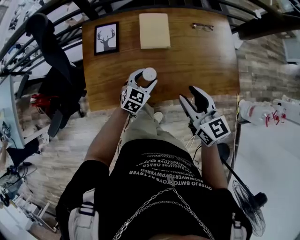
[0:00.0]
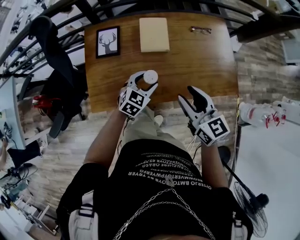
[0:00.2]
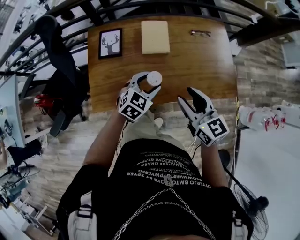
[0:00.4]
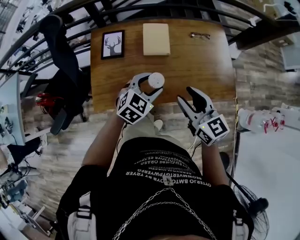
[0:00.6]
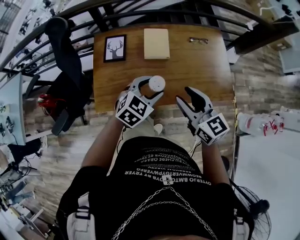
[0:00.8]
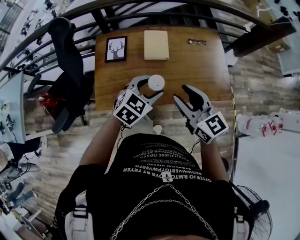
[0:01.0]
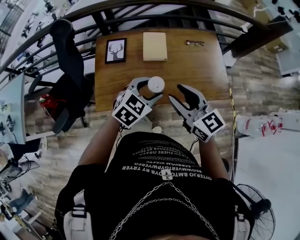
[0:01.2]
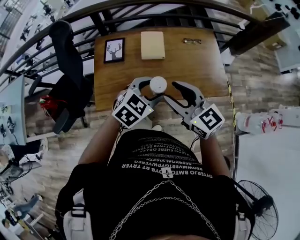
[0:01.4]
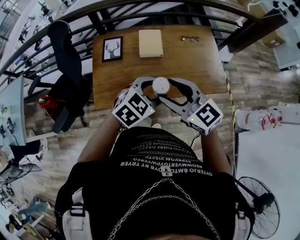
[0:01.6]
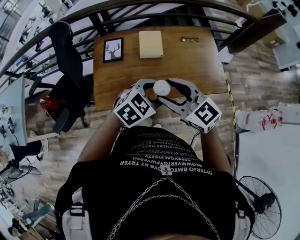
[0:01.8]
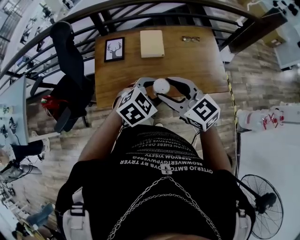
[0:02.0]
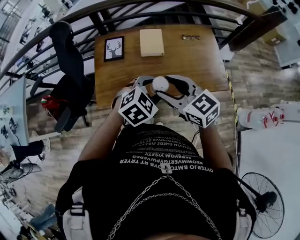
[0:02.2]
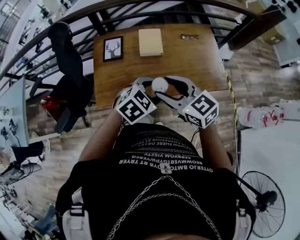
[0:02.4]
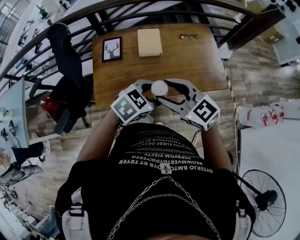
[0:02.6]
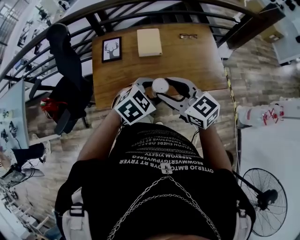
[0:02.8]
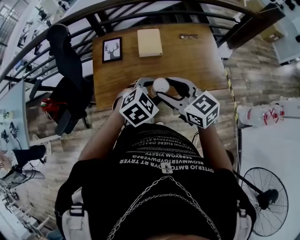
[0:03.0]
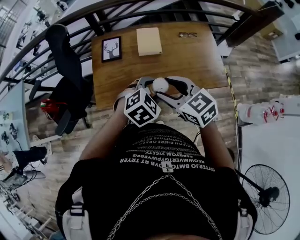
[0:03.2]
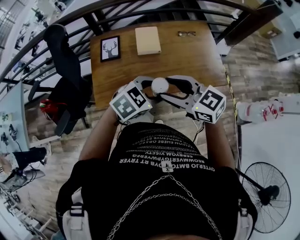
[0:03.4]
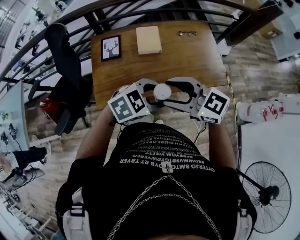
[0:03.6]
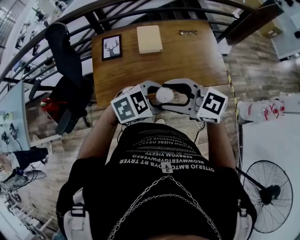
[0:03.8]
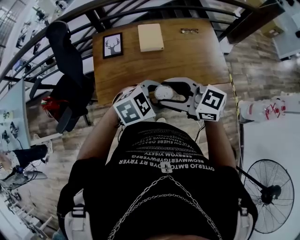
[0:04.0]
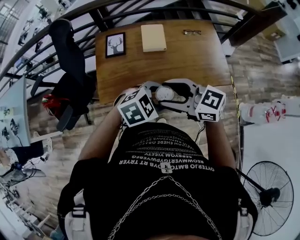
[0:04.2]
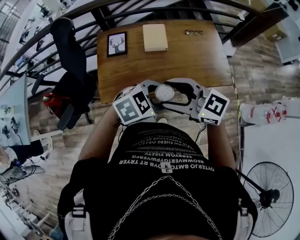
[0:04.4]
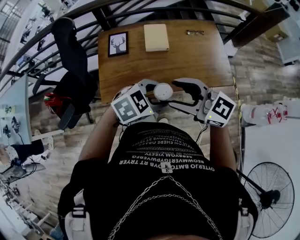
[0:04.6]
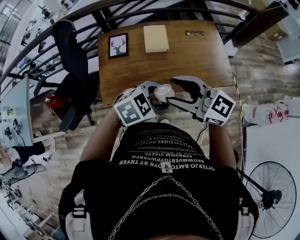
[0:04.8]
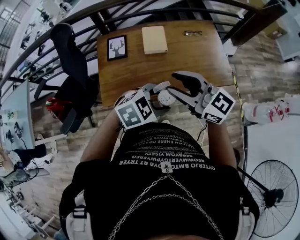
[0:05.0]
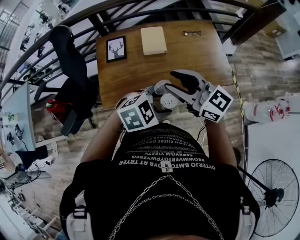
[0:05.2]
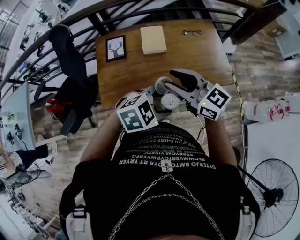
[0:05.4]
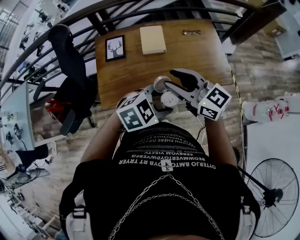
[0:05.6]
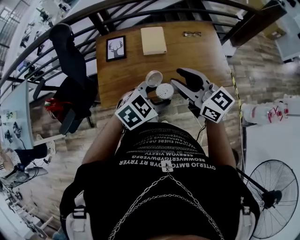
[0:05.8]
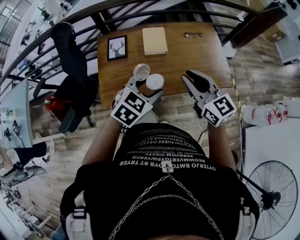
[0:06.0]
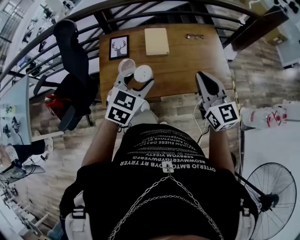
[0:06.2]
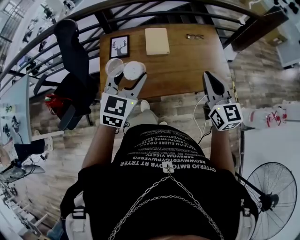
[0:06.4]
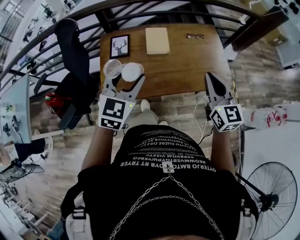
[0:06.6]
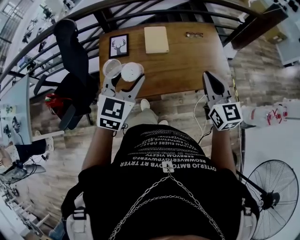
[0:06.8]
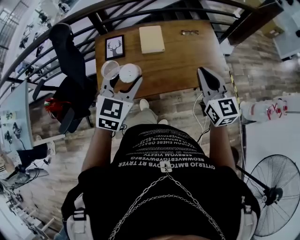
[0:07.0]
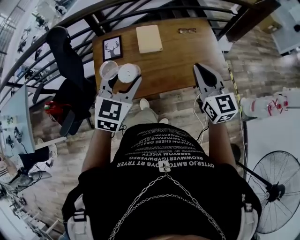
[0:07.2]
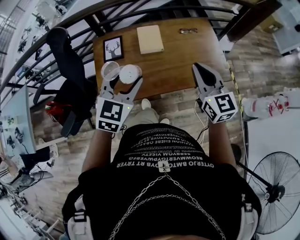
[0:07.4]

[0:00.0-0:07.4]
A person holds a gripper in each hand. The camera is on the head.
0:00.0 to 0:01.4: The right gripper is displaced upward and backward by approximately 15 cm, and turns by approximately 20 degrees. Meanwhile the left gripper heads upward and backward, covering some 25 cm.
0:01.4 to 0:03.0: The grippers stay close to where they were, moving slightly.
0:03.0 to 0:04.4: The left gripper moves about 5 cm. The right gripper shifts by some 5 cm, and turns by roughly 20 degrees.
0:04.4 to 0:06.0: The left gripper changes place by some 5 cm, and changes its angle by about 30 degrees; the right gripper changes place by approximately 10 cm, swivels some 30 degrees, and closes.
0:06.0 to 0:07.4: The right gripper travels to the right by roughly 5 cm. Meanwhile the left gripper moves upward and to the left, roughly 10 cm, and rotates roughly 20 degrees.

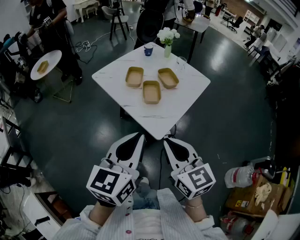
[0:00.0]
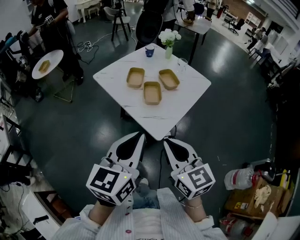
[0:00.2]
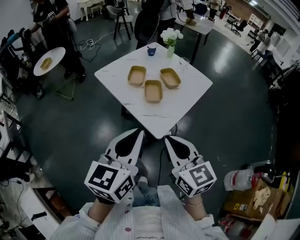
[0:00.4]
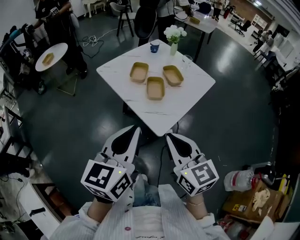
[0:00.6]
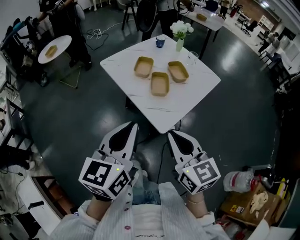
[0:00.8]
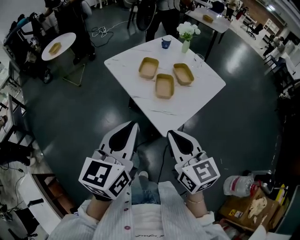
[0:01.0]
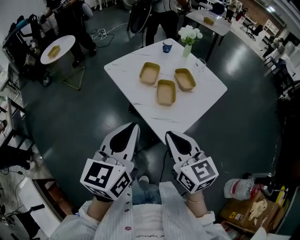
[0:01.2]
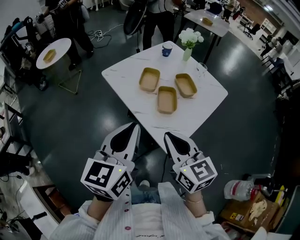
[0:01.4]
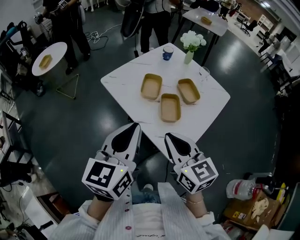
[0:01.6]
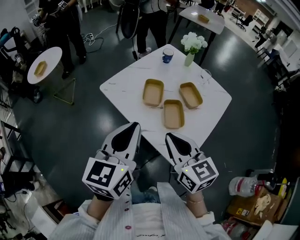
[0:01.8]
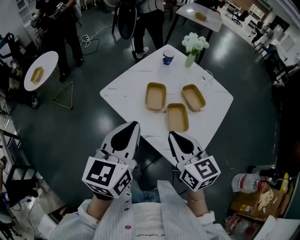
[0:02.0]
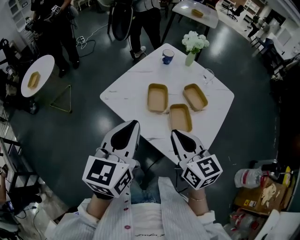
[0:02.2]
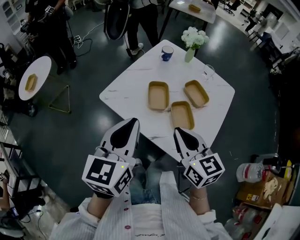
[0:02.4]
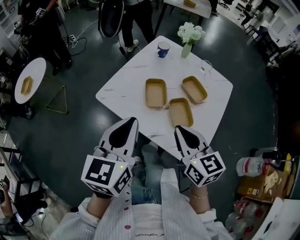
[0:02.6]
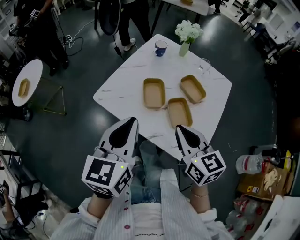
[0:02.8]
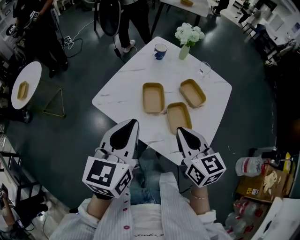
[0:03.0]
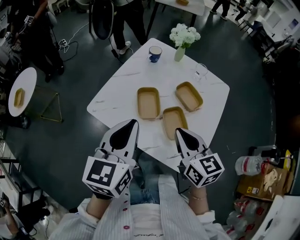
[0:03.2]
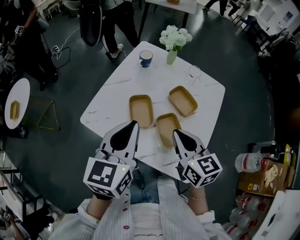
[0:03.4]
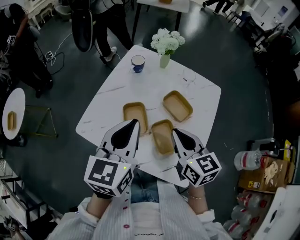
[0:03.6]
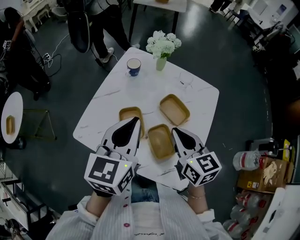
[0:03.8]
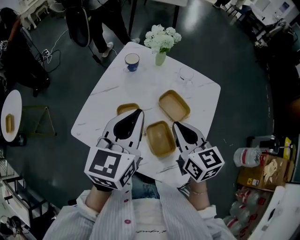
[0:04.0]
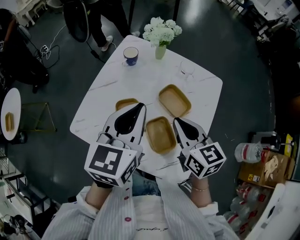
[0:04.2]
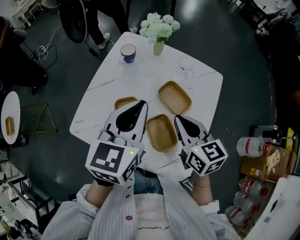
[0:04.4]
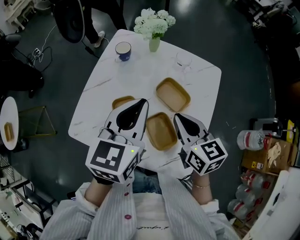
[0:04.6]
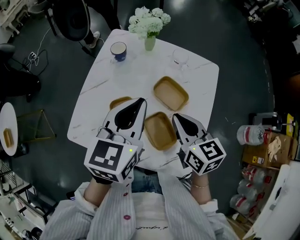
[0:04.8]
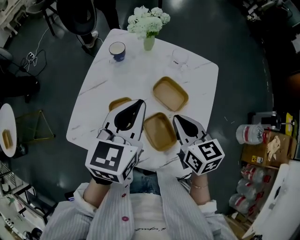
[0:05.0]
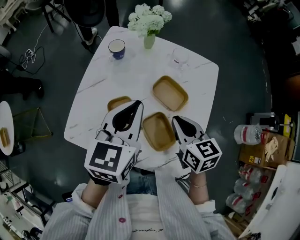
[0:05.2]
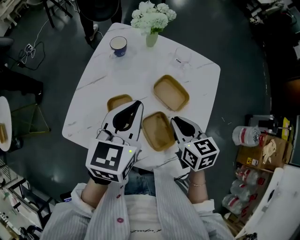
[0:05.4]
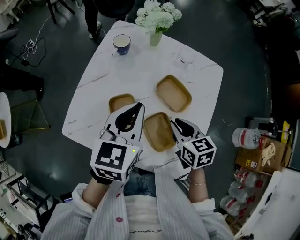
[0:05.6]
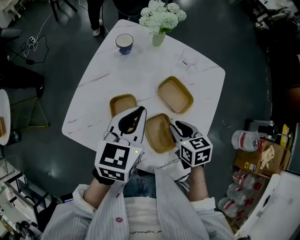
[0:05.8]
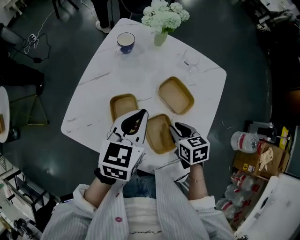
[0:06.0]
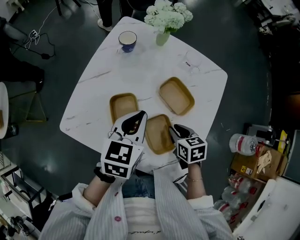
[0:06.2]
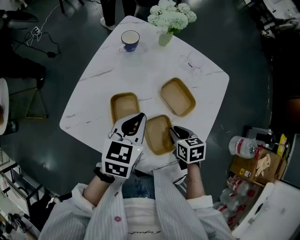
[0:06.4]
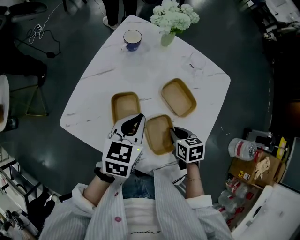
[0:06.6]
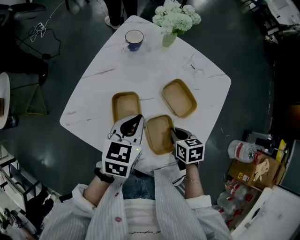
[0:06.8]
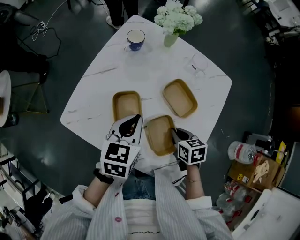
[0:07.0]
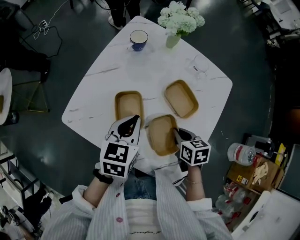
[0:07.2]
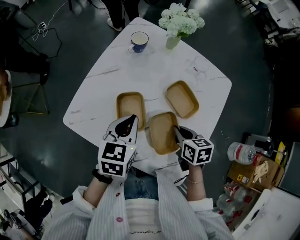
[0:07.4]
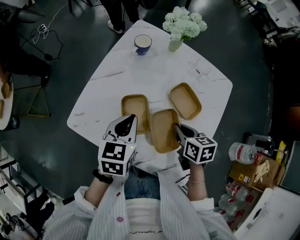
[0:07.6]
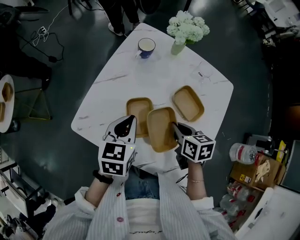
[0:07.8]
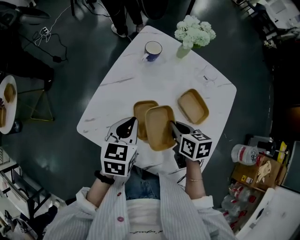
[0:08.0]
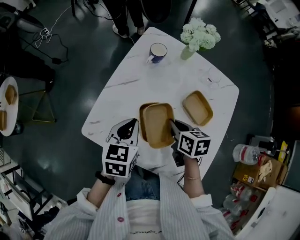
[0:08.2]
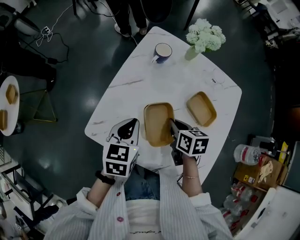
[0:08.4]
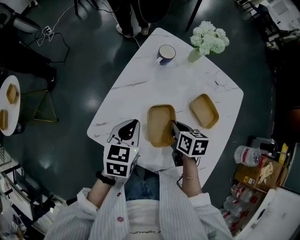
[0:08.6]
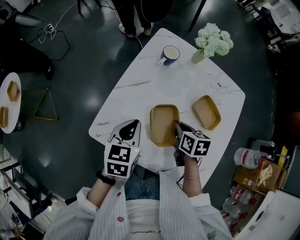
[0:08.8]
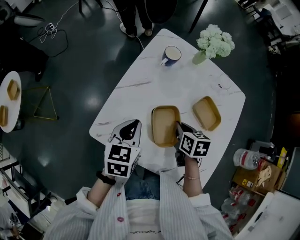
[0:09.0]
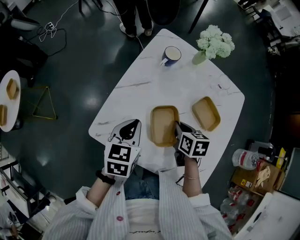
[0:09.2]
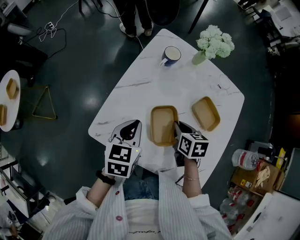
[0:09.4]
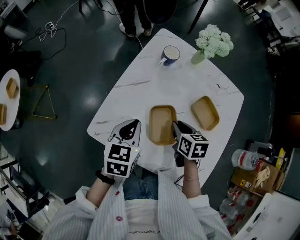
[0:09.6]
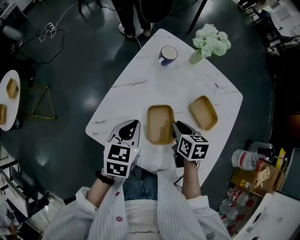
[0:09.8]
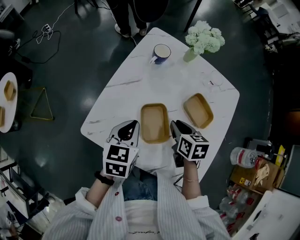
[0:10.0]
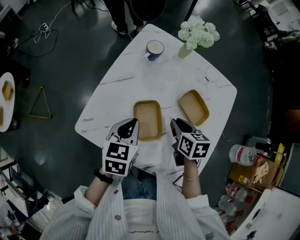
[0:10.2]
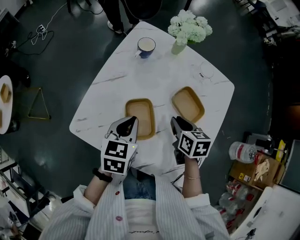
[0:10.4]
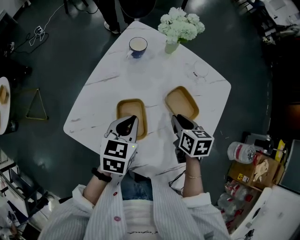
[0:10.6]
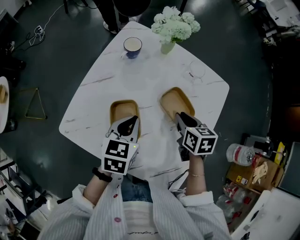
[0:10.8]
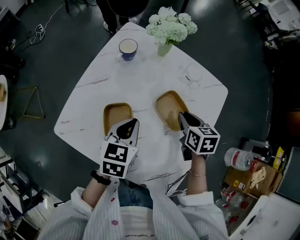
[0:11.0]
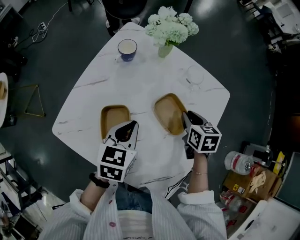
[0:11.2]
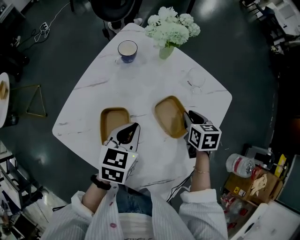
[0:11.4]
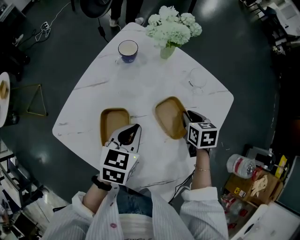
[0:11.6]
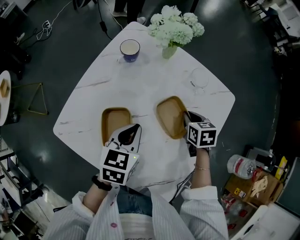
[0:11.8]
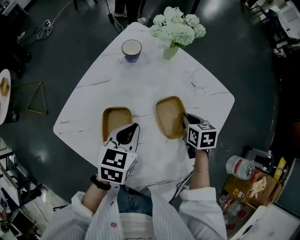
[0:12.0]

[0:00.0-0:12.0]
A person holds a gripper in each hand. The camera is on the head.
0:00.0 to 0:01.6: The left gripper heads forward and to the left, covering roughly 20 cm. The right gripper goes about 15 cm forward.
0:01.6 to 0:03.0: The right gripper travels forward by roughly 15 cm, and rotates approximately 20 degrees, while the left gripper travels forward and to the left by about 15 cm.
0:03.0 to 0:04.4: The grippers both shift forward and to the right by roughly 20 cm.
0:04.4 to 0:06.0: The left gripper travels downward by about 10 cm. The right gripper shifts roughly 15 cm downward, rotates approximately 30 degrees, and opens its fingers.
0:06.0 to 0:07.6: The left gripper travels to the left by some 5 cm.
0:07.6 to 0:09.0: The left gripper shifts about 10 cm to the left; the right gripper is displaced to the left and forward by roughly 10 cm.
0:09.0 to 0:10.4: The two grippers go some 10 cm to the right.
0:10.4 to 0:12.0: The right gripper travels to the right, forward and downward by approximately 15 cm; the left gripper goes roughly 10 cm to the right.

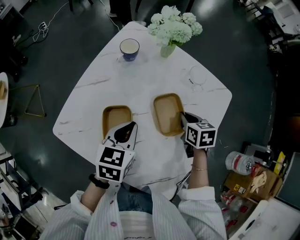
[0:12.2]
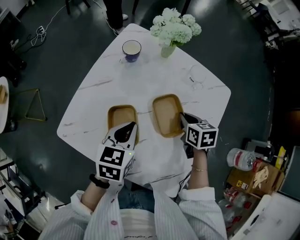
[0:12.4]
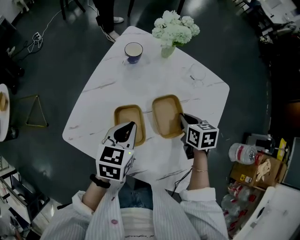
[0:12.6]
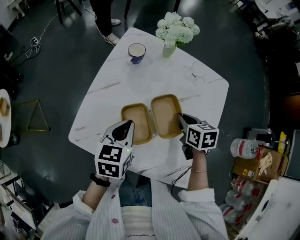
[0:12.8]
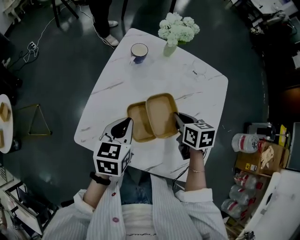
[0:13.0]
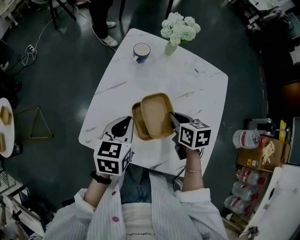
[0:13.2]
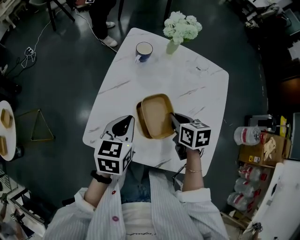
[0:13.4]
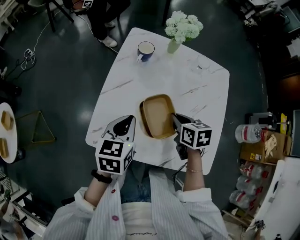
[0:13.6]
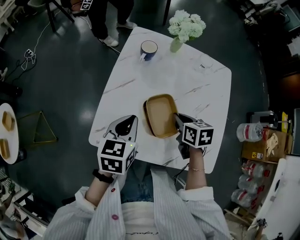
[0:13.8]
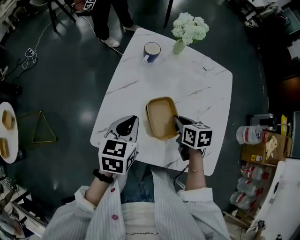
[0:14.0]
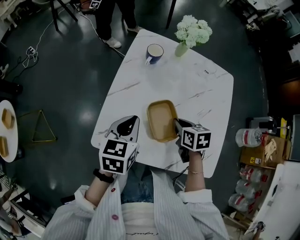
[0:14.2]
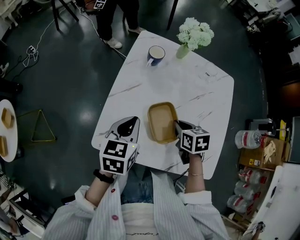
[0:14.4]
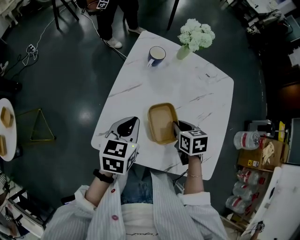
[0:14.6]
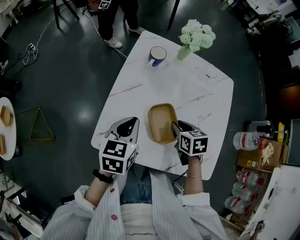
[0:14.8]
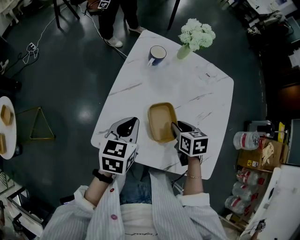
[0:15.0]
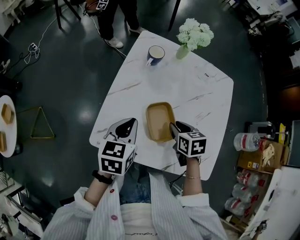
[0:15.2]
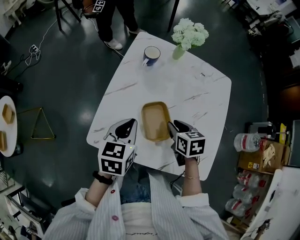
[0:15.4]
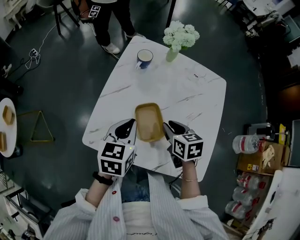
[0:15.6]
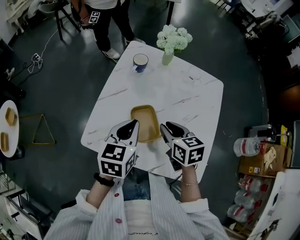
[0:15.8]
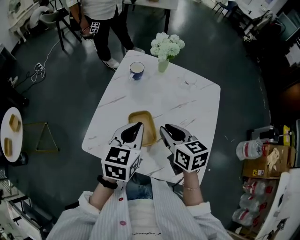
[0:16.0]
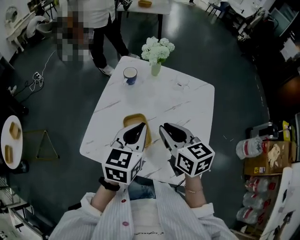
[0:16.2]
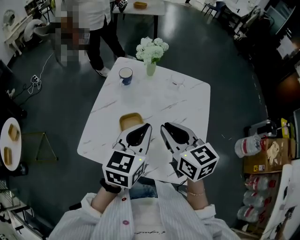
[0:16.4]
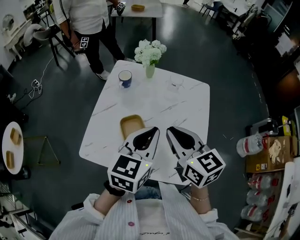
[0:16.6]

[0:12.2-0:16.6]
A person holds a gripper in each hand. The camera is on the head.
0:12.2 to 0:13.6: The left gripper is displaced to the left by approximately 15 cm. Meanwhile the right gripper goes some 20 cm to the left and backward.
0:13.6 to 0:15.2: The grippers move only a little.
0:15.2 to 0:16.6: The left gripper heads to the right and upward, covering approximately 25 cm, and swivels roughly 20 degrees, while the right gripper moves upward, some 25 cm, and angles its fingers upward, by about 40 degrees.
